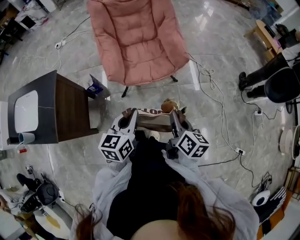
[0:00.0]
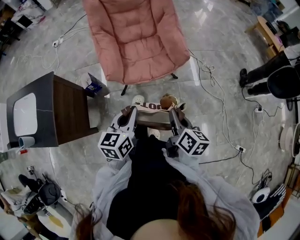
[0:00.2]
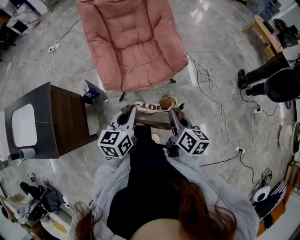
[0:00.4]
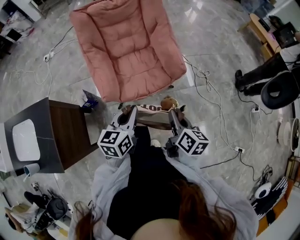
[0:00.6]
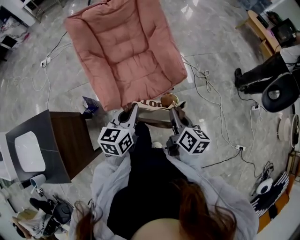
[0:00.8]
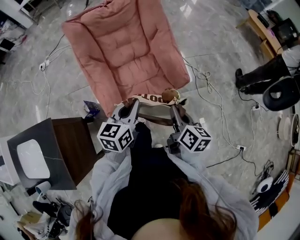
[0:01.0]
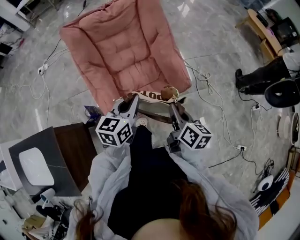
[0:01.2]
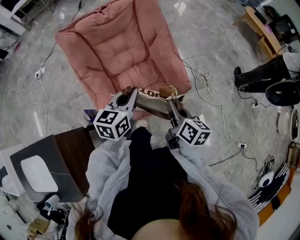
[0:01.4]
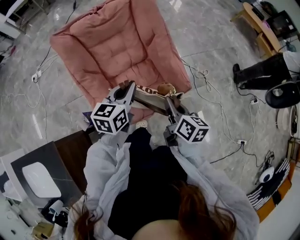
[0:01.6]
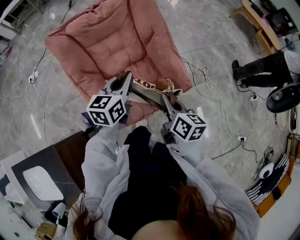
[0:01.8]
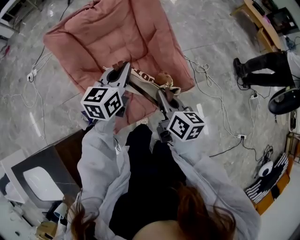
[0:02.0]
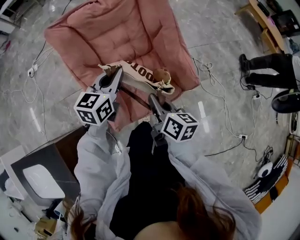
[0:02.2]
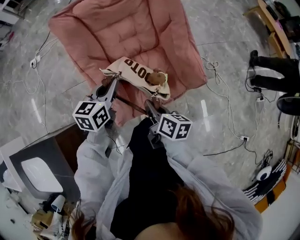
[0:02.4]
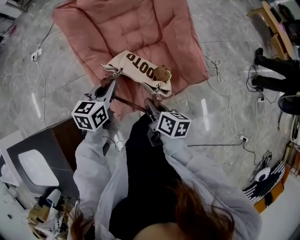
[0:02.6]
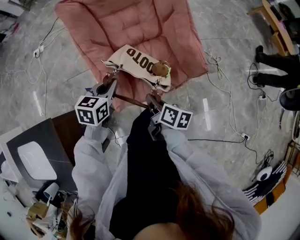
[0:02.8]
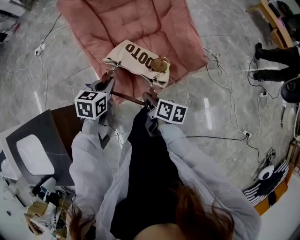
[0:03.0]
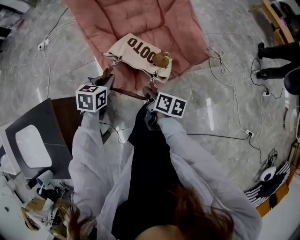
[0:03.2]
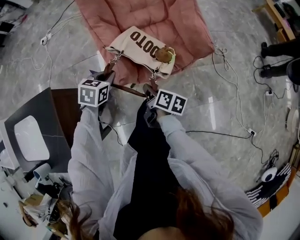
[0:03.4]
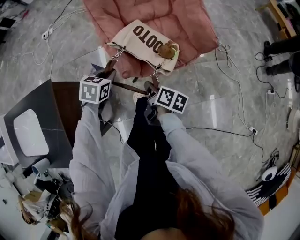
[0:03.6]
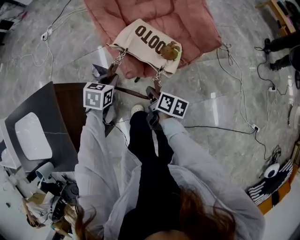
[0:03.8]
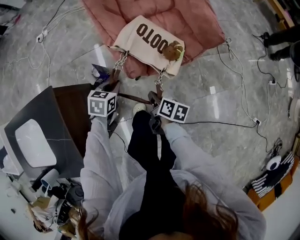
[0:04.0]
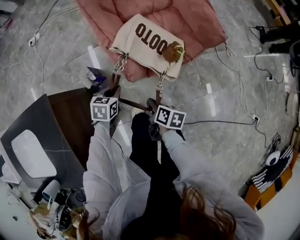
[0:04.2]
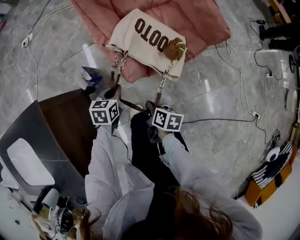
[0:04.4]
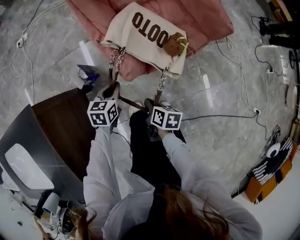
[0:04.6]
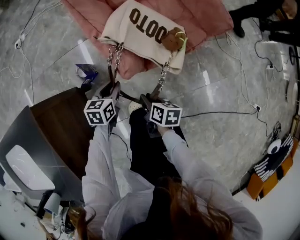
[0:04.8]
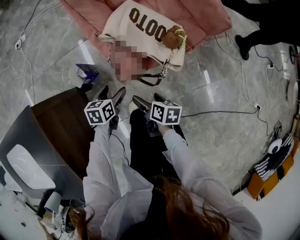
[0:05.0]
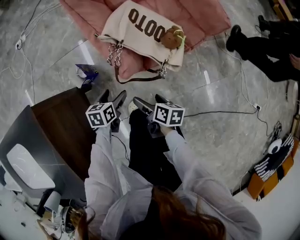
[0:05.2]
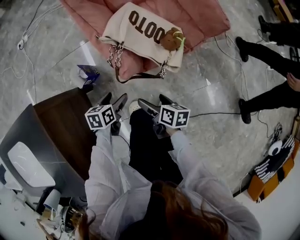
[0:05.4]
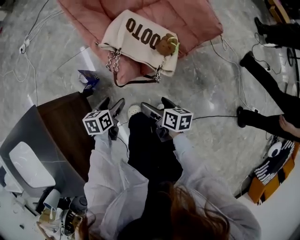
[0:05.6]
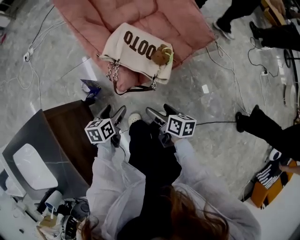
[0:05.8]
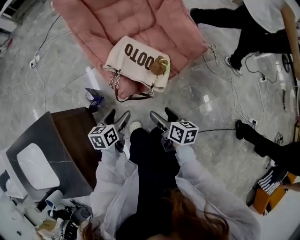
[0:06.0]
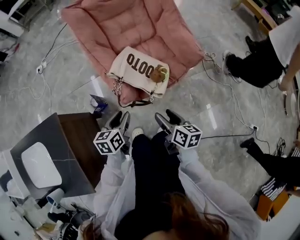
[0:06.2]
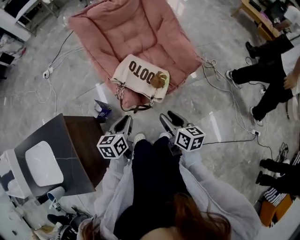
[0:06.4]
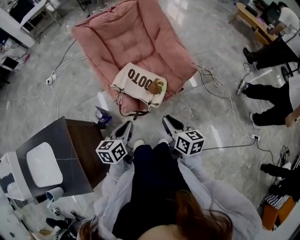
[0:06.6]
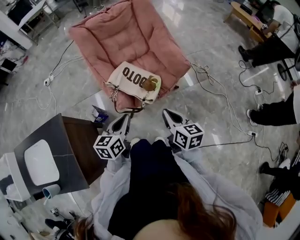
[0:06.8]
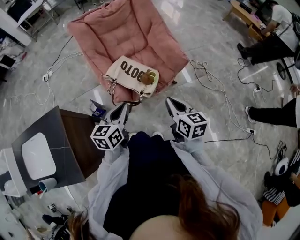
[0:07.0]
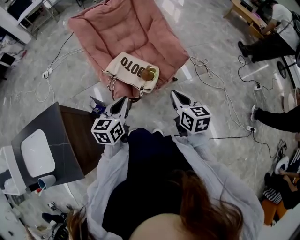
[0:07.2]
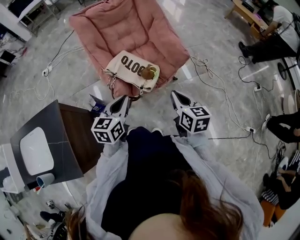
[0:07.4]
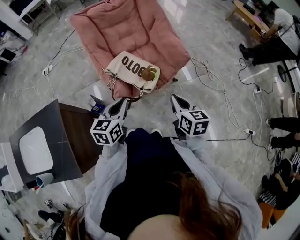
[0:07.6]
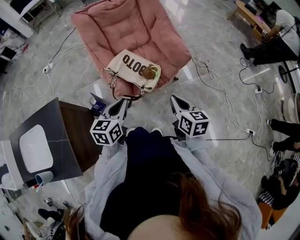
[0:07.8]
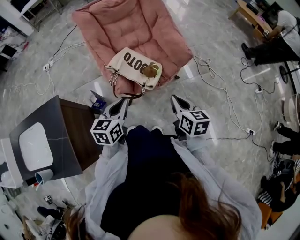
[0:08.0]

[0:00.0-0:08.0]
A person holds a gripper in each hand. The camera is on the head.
0:00.0 to 0:01.6: Both grippers travel together forward, some 40 cm.
0:01.6 to 0:03.2: The left gripper is displaced to the left, downward and backward by some 25 cm, and changes its angle by approximately 30 degrees. The right gripper travels downward, to the left and backward by some 25 cm, and rotates some 20 degrees.
0:03.2 to 0:04.8: The right gripper travels downward, backward and to the left by about 25 cm, while the left gripper moves downward, roughly 20 cm.
0:04.8 to 0:06.4: The right gripper heads upward and to the right, covering approximately 30 cm, swivels about 30 degrees, and opens and closes again. The left gripper shifts about 25 cm upward, and opens and closes again.
0:06.4 to 0:08.0: The right gripper shifts roughly 10 cm to the right and upward, and closes its fingers; the left gripper is displaced upward by about 5 cm.

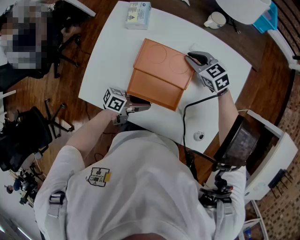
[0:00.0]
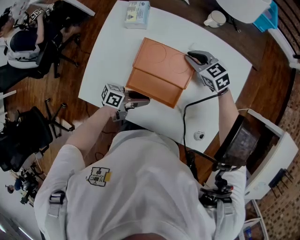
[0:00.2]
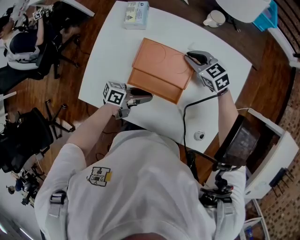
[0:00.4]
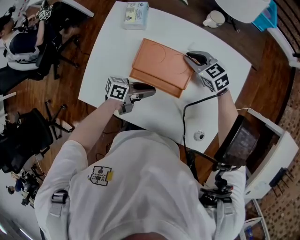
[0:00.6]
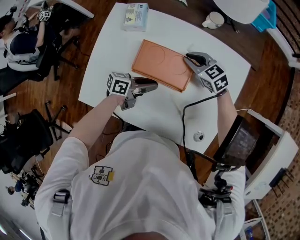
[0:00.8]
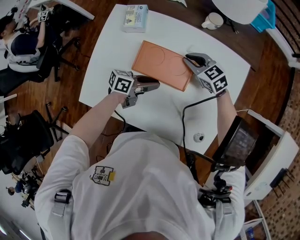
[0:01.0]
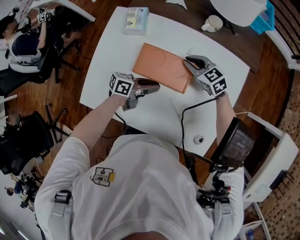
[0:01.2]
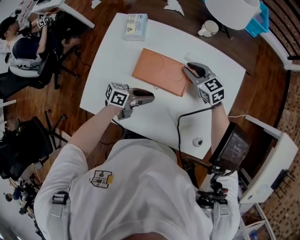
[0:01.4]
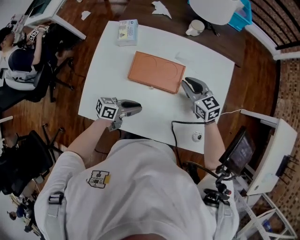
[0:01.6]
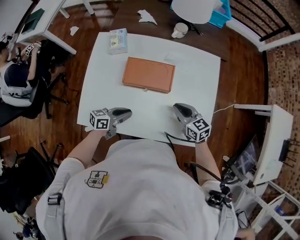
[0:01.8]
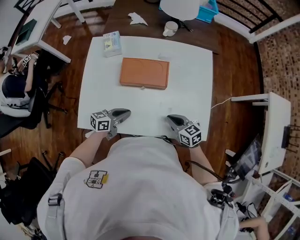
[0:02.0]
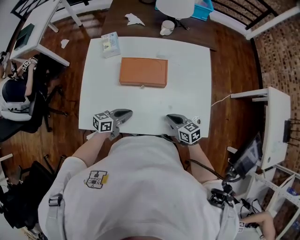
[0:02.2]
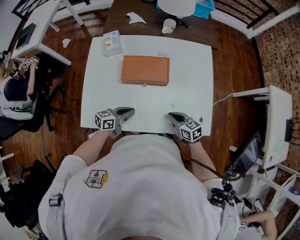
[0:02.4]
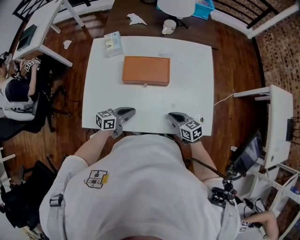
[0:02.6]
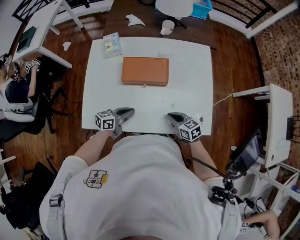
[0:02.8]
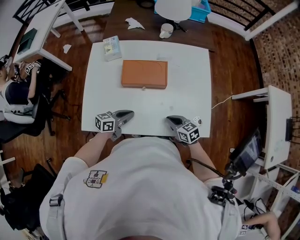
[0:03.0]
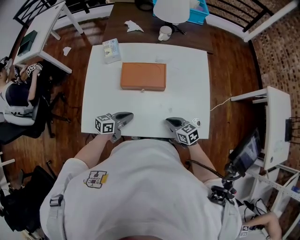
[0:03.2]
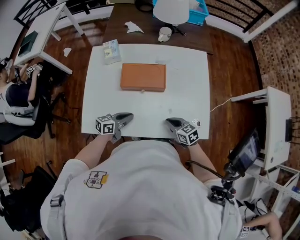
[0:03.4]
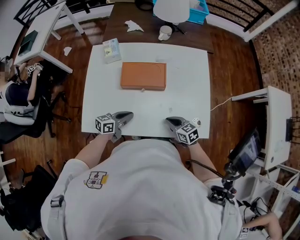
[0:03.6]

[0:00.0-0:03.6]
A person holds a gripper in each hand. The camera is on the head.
0:00.0 to 0:01.8: The right gripper moves roughly 20 cm, and swivels about 30 degrees. The left gripper changes its angle by approximately 20 degrees.
0:01.8 to 0:03.6: The right gripper is displaced backward and downward by some 10 cm.

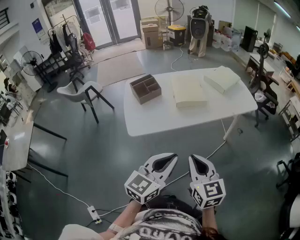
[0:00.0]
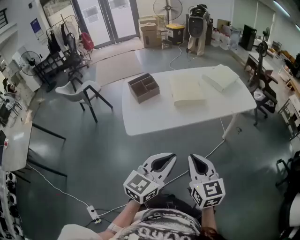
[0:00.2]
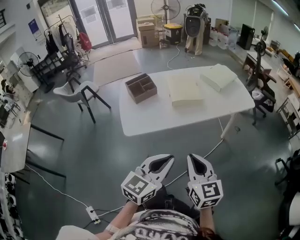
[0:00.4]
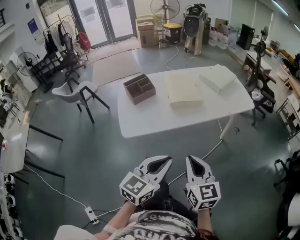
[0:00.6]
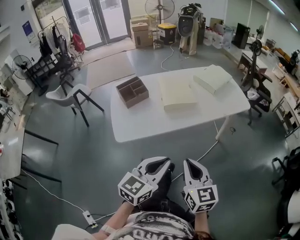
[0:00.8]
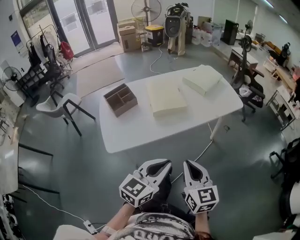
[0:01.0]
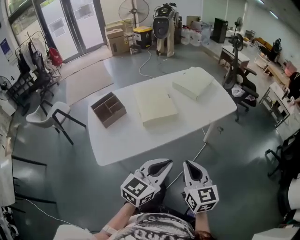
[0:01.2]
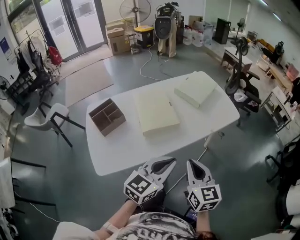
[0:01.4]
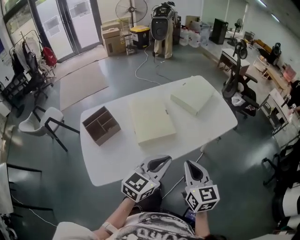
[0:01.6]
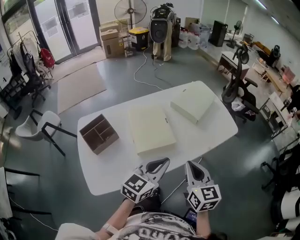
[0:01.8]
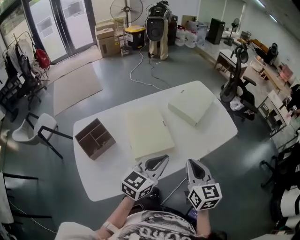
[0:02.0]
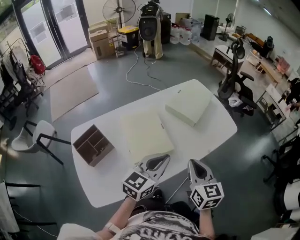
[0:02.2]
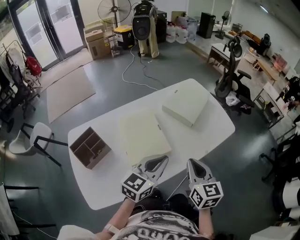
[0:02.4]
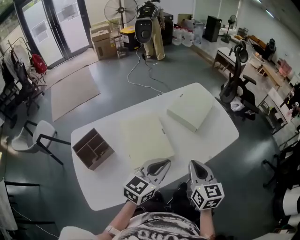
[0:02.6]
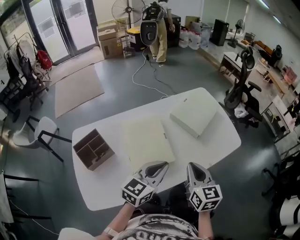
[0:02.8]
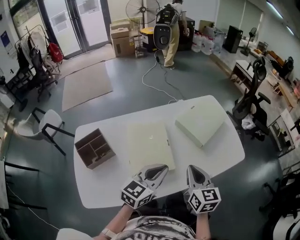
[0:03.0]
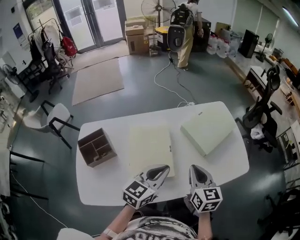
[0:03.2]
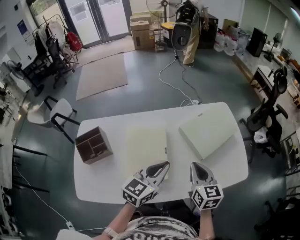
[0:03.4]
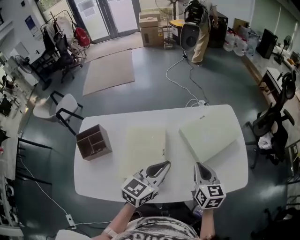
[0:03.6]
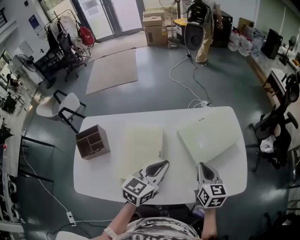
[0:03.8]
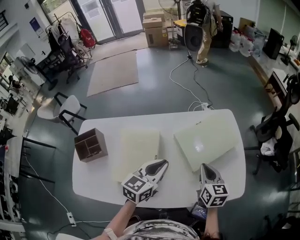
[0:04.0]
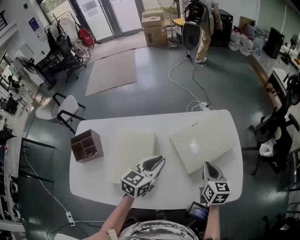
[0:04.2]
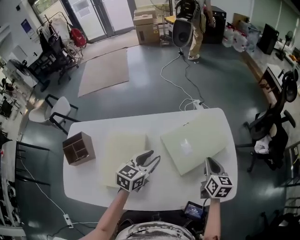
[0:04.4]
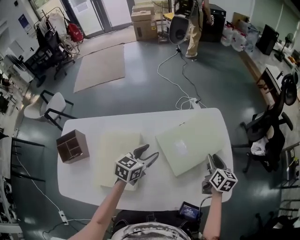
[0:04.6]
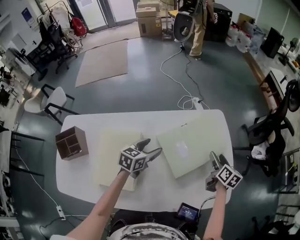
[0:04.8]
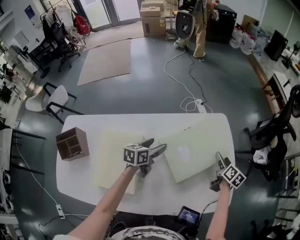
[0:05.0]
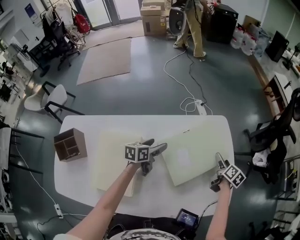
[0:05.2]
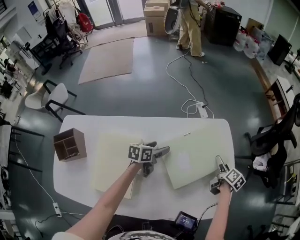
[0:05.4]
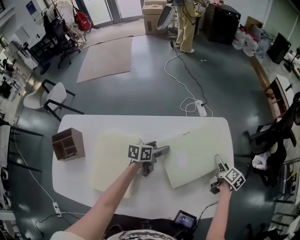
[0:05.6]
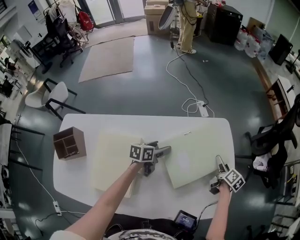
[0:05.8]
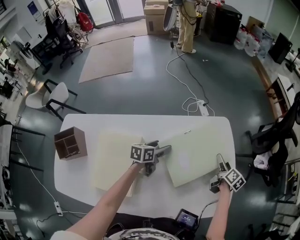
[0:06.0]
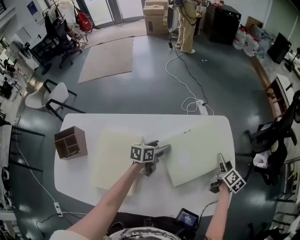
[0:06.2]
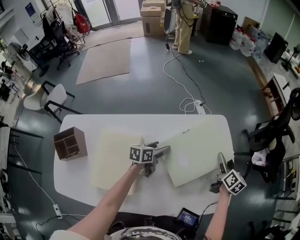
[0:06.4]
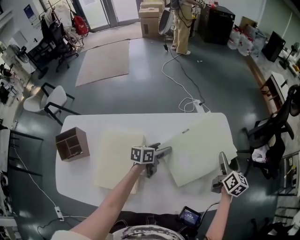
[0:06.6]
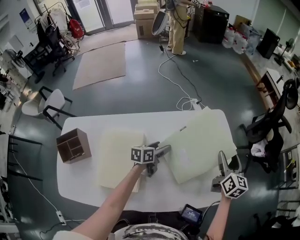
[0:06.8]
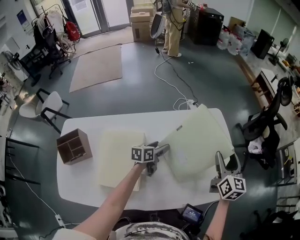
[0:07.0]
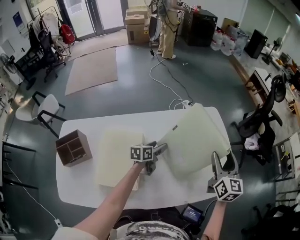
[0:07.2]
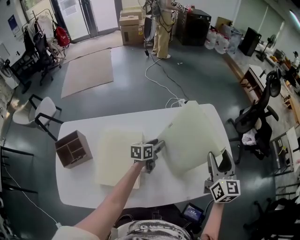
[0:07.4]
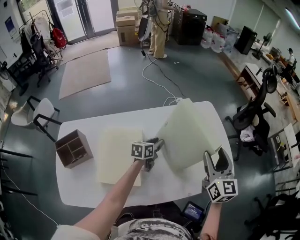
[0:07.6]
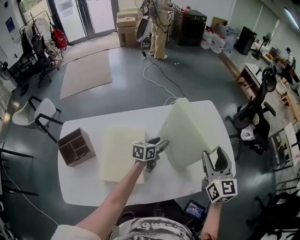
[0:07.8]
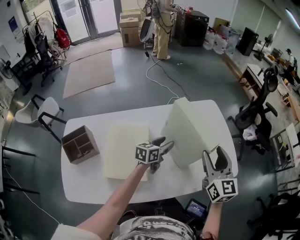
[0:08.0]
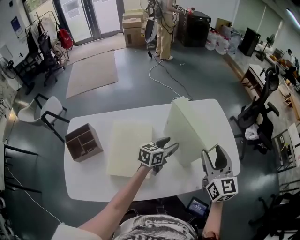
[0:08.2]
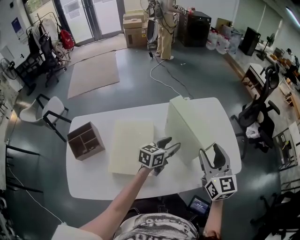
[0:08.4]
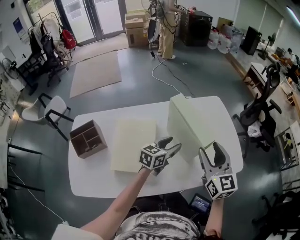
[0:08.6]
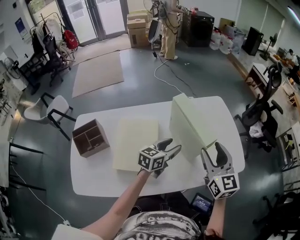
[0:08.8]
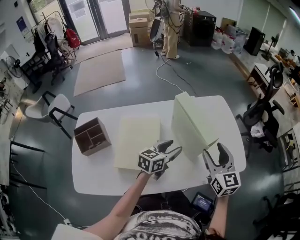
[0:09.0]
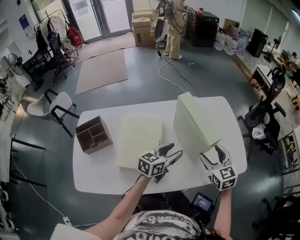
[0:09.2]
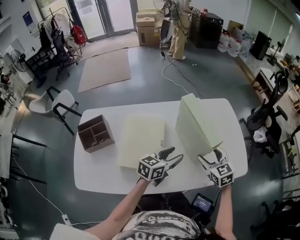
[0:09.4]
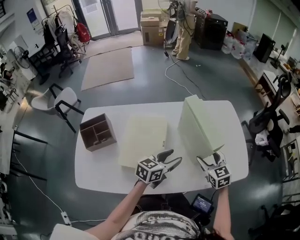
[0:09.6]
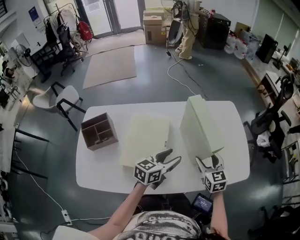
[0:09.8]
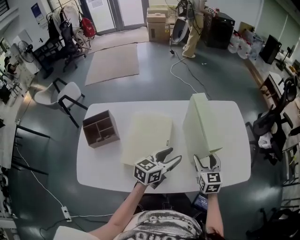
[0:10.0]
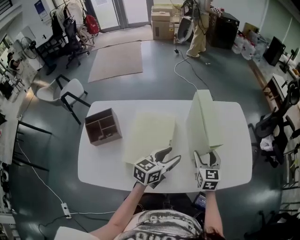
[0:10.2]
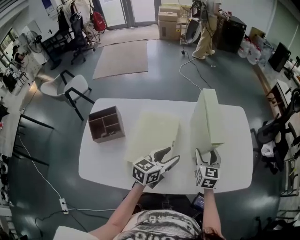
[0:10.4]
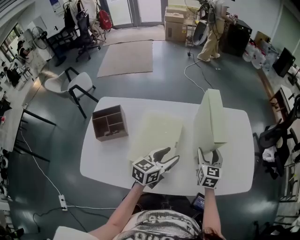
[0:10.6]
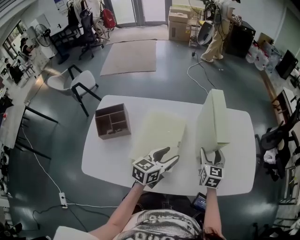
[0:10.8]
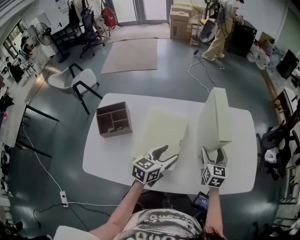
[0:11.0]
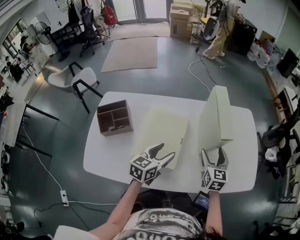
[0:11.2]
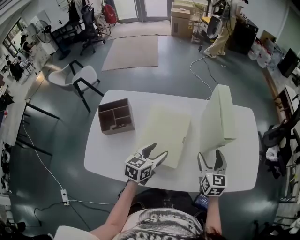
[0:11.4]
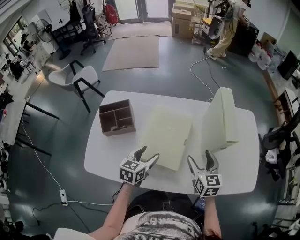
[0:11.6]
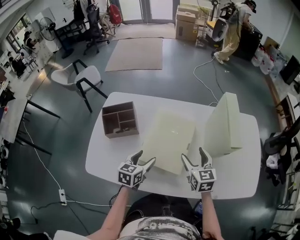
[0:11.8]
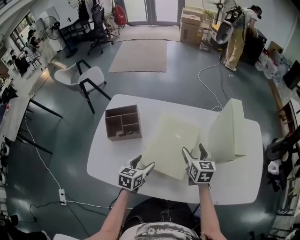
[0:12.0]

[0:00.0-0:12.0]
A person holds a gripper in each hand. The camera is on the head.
0:00.0 to 0:01.6: Both grippers move forward, roughly 30 cm.
0:01.6 to 0:03.0: Both grippers move forward, about 20 cm.
0:03.0 to 0:04.4: Both grippers travel together forward and to the right, approximately 30 cm. The left gripper swivels approximately 20 degrees.
0:04.4 to 0:06.0: The left gripper heads downward and forward, covering about 20 cm, swivels roughly 30 degrees, and opens. Meanwhile the right gripper goes roughly 20 cm forward, downward and to the right, rotates roughly 30 degrees, and opens up.
0:06.0 to 0:07.6: The left gripper is displaced backward by about 10 cm, and closes up; the right gripper shifts some 35 cm upward, backward and to the left, and rolls counterclockwise, seen from behind, by some 40 degrees.
0:07.6 to 0:09.0: The left gripper is displaced backward and upward by roughly 15 cm; the right gripper heads backward and to the left, covering roughly 10 cm.
0:09.0 to 0:10.4: The left gripper travels to the left by some 5 cm. Meanwhile the right gripper shifts approximately 15 cm downward and to the left.
0:10.4 to 0:12.0: The left gripper is displaced to the left and downward by some 20 cm, and rotates some 30 degrees; the right gripper is displaced to the left by approximately 15 cm.
